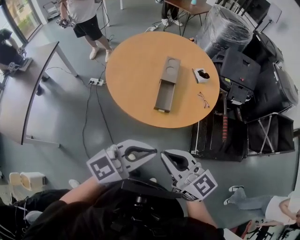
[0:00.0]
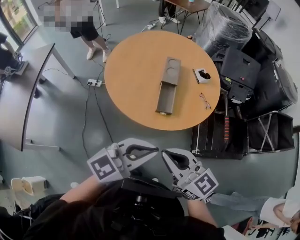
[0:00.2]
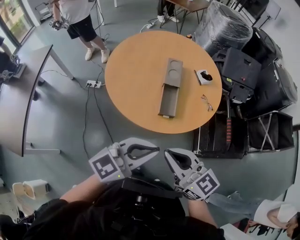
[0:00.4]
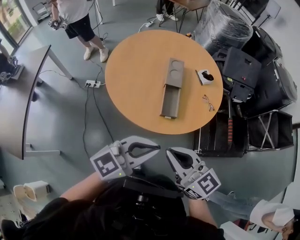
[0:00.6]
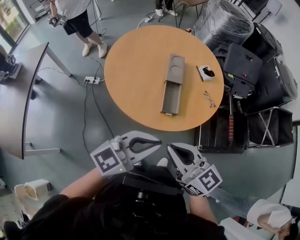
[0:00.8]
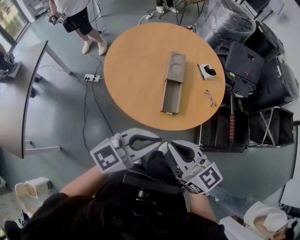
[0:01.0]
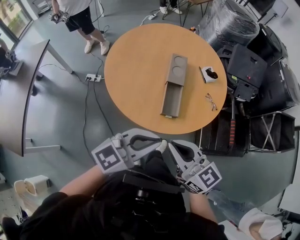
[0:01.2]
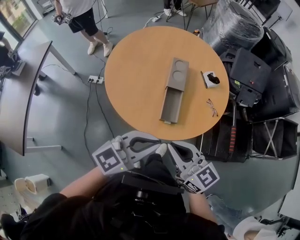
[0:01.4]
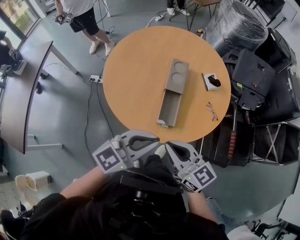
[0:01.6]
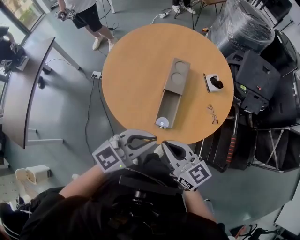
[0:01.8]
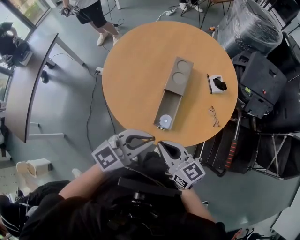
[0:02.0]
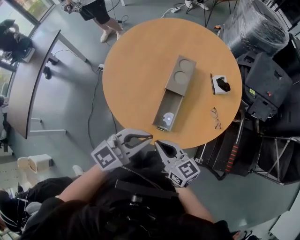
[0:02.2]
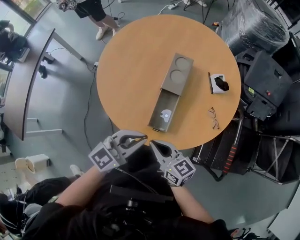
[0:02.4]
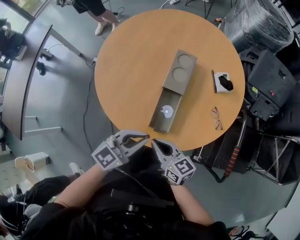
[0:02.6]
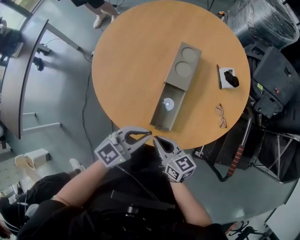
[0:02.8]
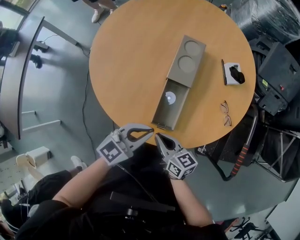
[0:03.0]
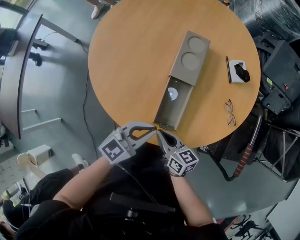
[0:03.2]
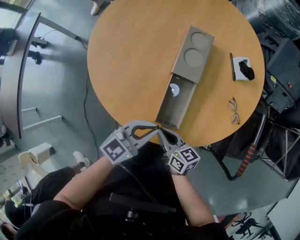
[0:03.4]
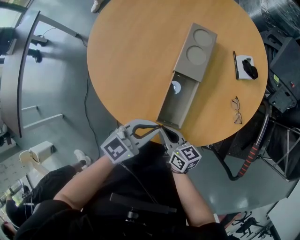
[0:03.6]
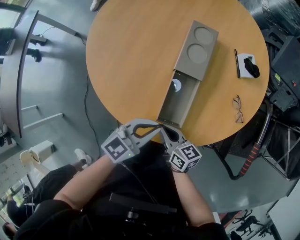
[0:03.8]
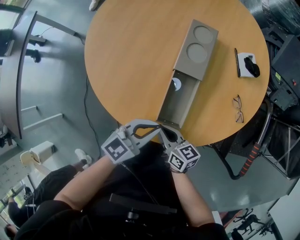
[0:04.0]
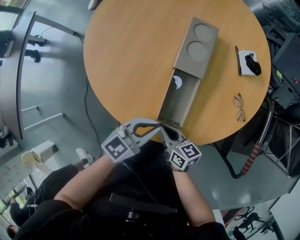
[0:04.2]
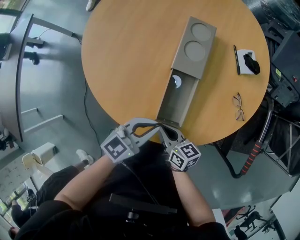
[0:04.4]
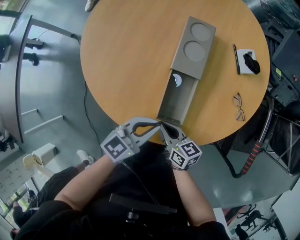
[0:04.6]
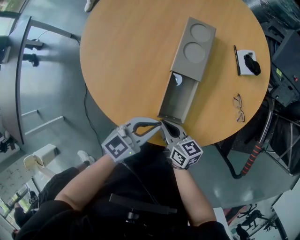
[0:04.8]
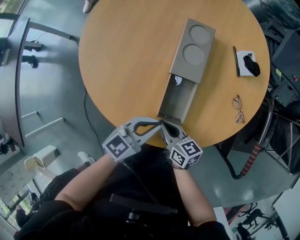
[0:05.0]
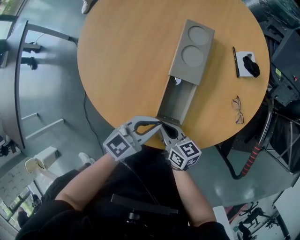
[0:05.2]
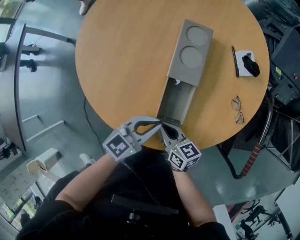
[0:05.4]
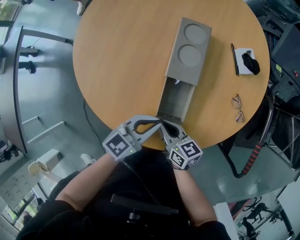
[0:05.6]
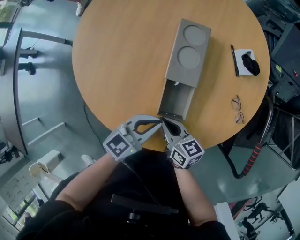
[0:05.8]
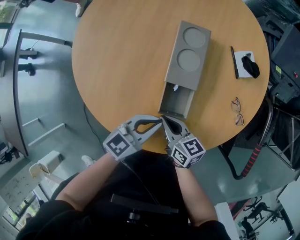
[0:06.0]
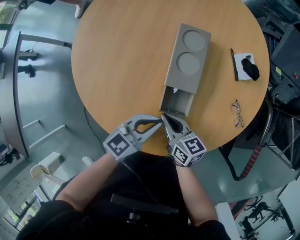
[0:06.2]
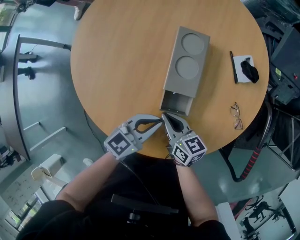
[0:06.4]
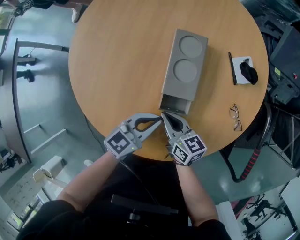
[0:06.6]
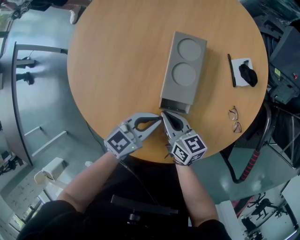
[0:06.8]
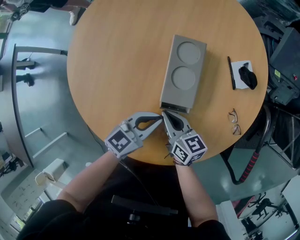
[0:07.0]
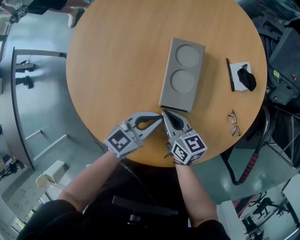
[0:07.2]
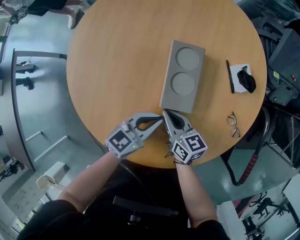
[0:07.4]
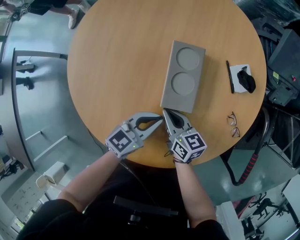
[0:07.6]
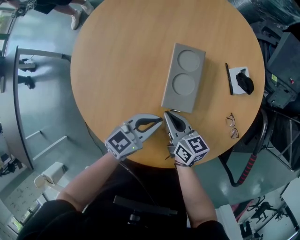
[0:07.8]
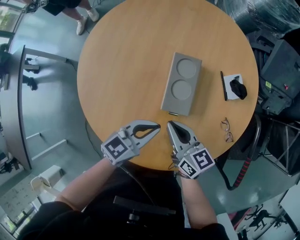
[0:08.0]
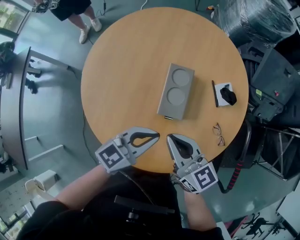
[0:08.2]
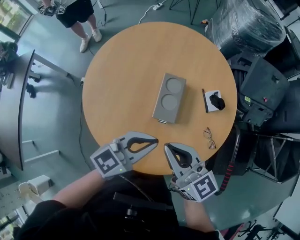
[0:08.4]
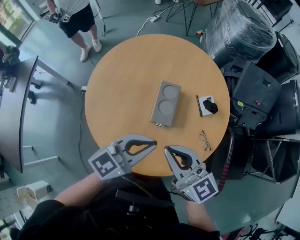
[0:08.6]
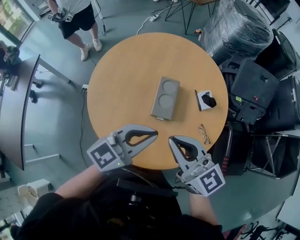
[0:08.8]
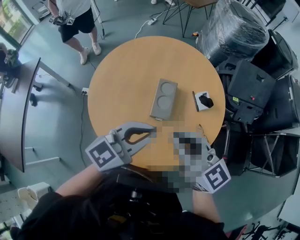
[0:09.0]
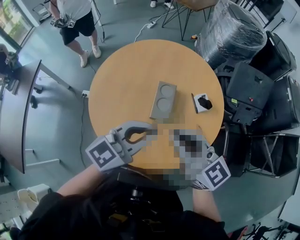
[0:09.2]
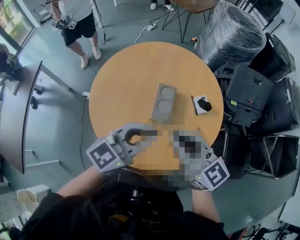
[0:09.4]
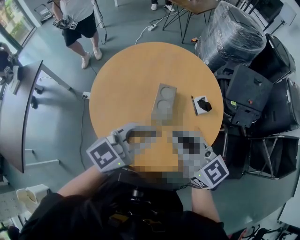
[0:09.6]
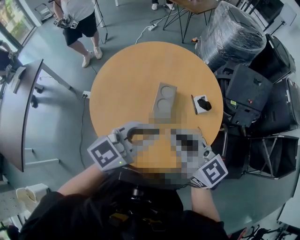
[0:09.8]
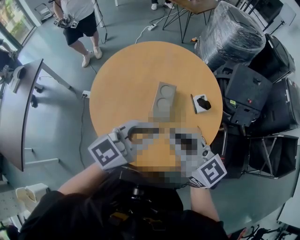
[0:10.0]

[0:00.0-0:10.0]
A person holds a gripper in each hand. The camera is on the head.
0:00.0 to 0:01.4: The two grippers go roughly 20 cm forward.
0:01.4 to 0:02.8: Both grippers move downward and forward, approximately 30 cm. The right gripper rotates about 30 degrees.
0:02.8 to 0:04.2: Both grippers travel together downward, some 10 cm.
0:04.2 to 0:05.8: The two grippers go some 10 cm forward.
0:05.8 to 0:07.2: Both grippers travel together forward, about 15 cm.
0:07.2 to 0:08.6: The two grippers go roughly 35 cm upward. The right gripper changes its angle by about 40 degrees.
0:08.6 to 0:10.0: The grippers both shift upward by some 10 cm.

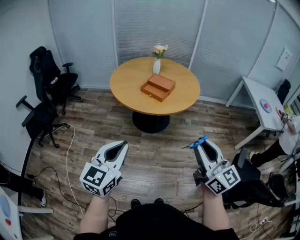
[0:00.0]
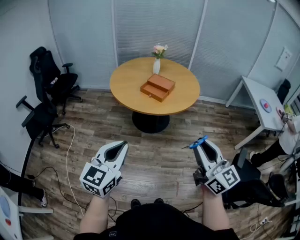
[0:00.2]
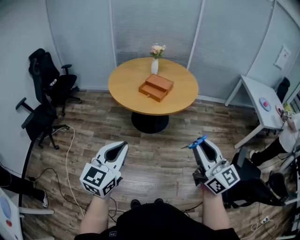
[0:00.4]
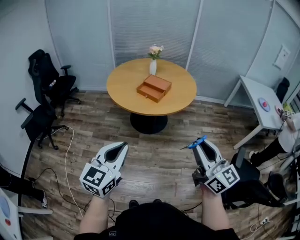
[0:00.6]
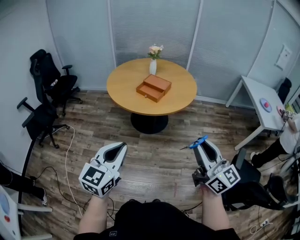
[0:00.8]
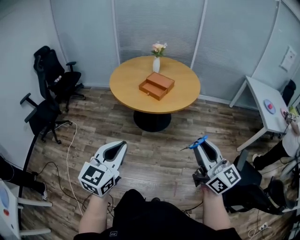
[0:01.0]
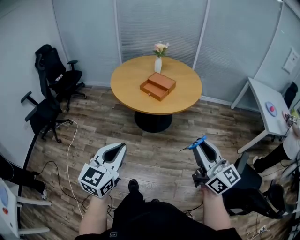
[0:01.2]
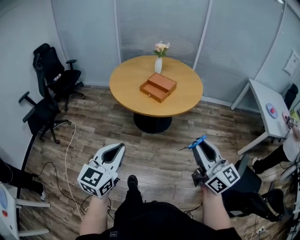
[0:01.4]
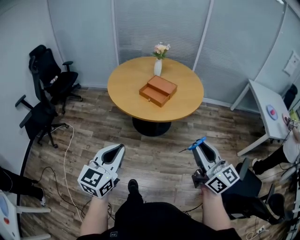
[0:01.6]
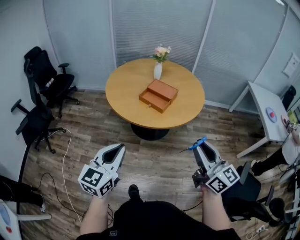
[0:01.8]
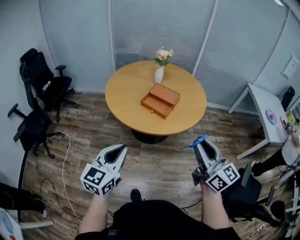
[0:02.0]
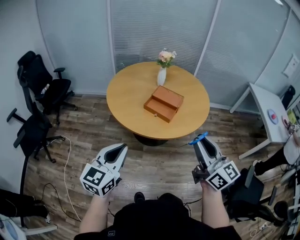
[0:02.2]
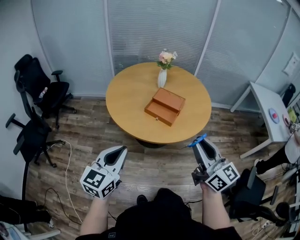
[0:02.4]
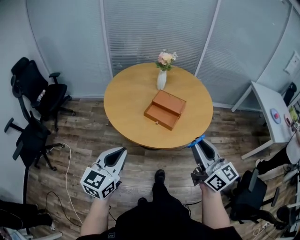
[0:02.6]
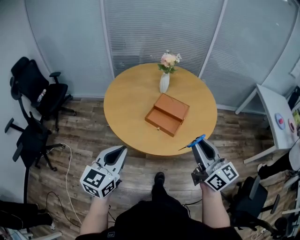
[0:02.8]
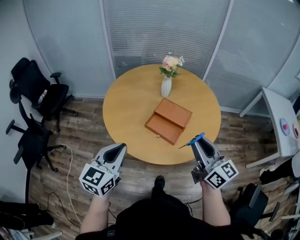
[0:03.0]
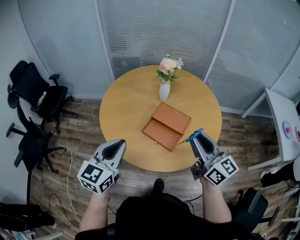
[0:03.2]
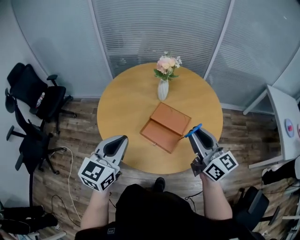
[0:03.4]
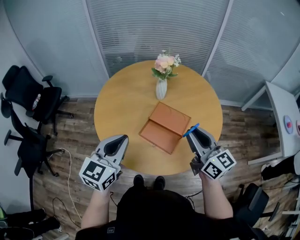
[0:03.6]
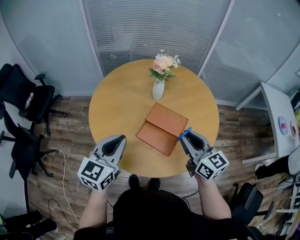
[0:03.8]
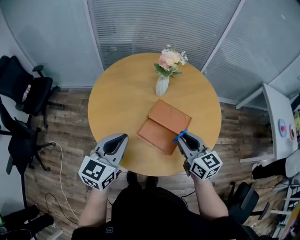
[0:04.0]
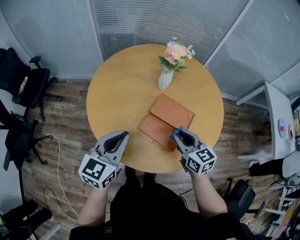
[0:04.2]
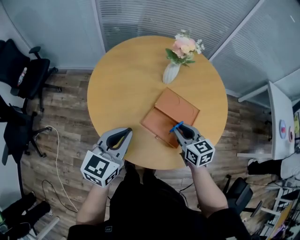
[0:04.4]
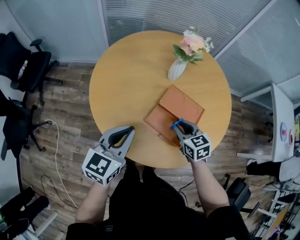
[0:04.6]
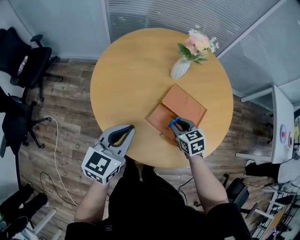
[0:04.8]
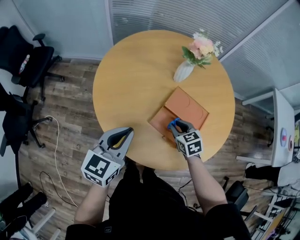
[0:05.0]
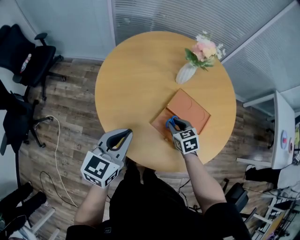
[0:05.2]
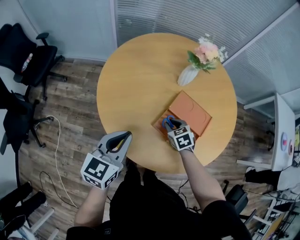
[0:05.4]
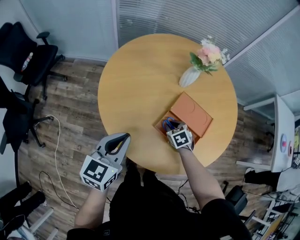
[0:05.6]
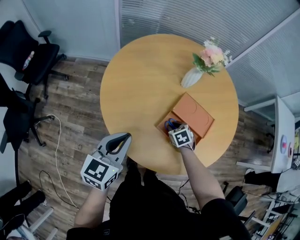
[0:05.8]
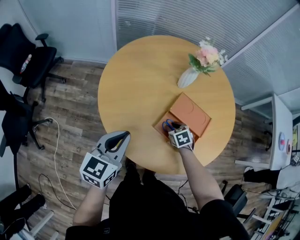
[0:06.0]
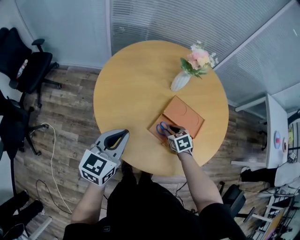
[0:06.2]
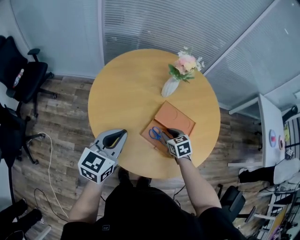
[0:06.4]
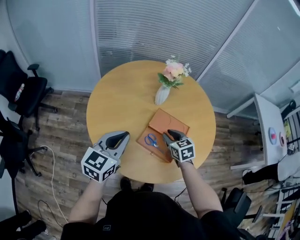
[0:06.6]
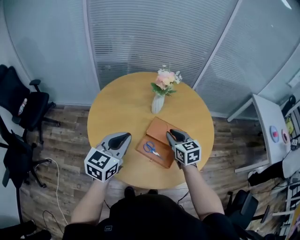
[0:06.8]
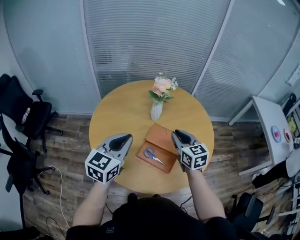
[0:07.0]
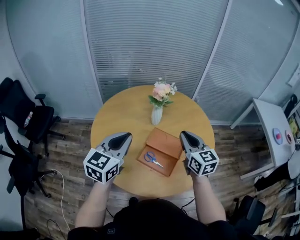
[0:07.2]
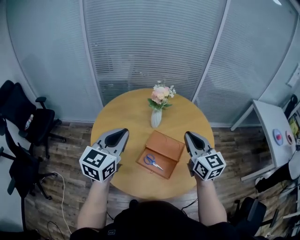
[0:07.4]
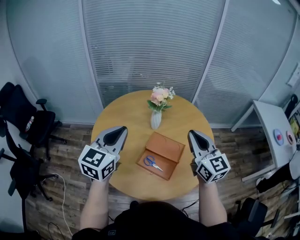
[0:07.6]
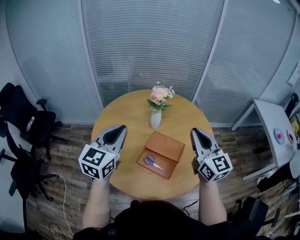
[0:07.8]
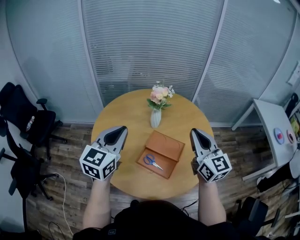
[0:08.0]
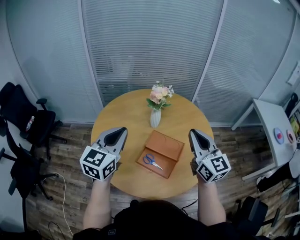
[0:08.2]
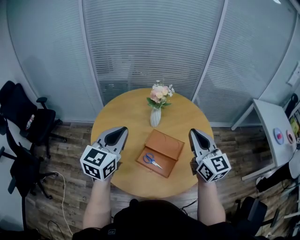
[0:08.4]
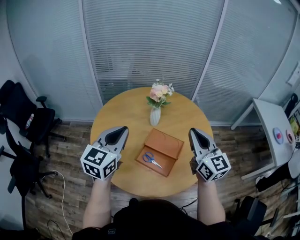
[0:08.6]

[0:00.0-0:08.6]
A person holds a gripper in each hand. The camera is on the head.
0:00.0 to 0:01.4: The left gripper shifts by approximately 5 cm. The right gripper shifts approximately 5 cm to the right.
0:01.4 to 0:02.8: The grippers both shift forward by about 35 cm.
0:02.8 to 0:04.4: The right gripper moves forward and downward, roughly 35 cm, and angles its fingers downward, by roughly 40 degrees, while the left gripper moves forward, some 25 cm.
0:04.4 to 0:05.8: The right gripper moves downward, roughly 20 cm, and tilts its fingers roughly 40 degrees downward, while the left gripper shifts roughly 10 cm to the left.
0:05.8 to 0:07.2: The right gripper goes roughly 35 cm upward, and tilts its fingers roughly 50 degrees upward. The left gripper shifts about 20 cm upward and to the right.
0:07.2 to 0:08.6: The right gripper goes some 10 cm upward.

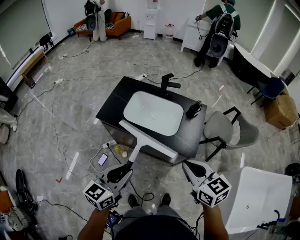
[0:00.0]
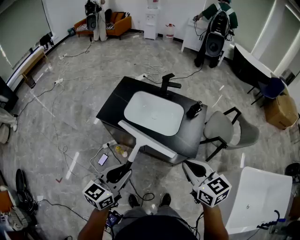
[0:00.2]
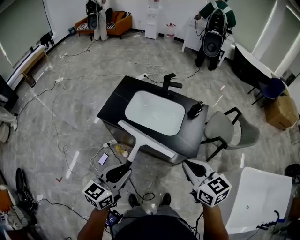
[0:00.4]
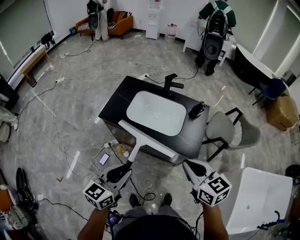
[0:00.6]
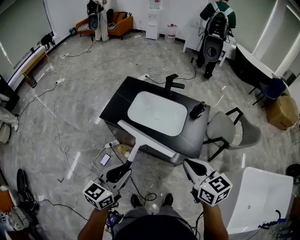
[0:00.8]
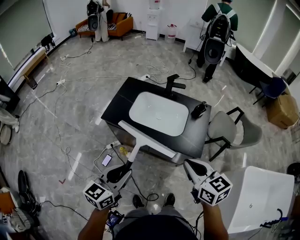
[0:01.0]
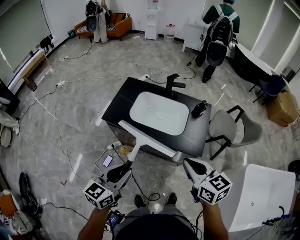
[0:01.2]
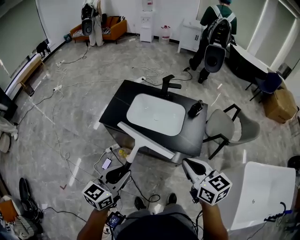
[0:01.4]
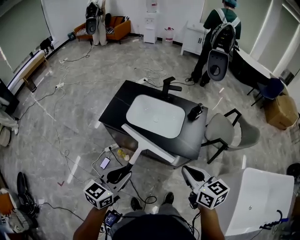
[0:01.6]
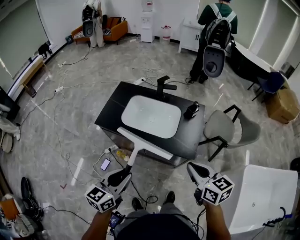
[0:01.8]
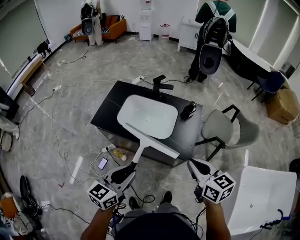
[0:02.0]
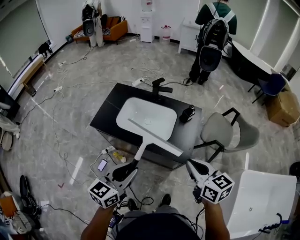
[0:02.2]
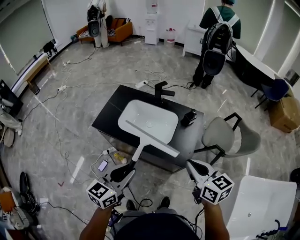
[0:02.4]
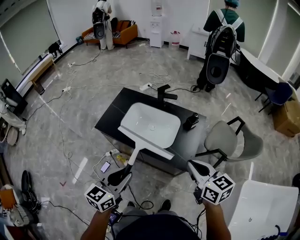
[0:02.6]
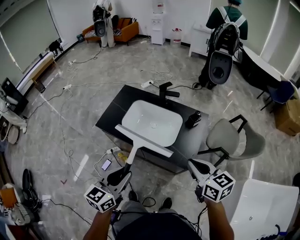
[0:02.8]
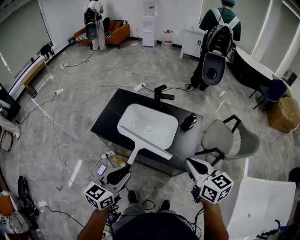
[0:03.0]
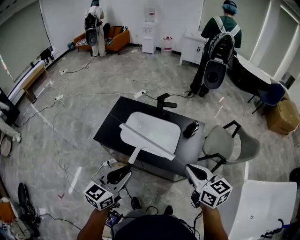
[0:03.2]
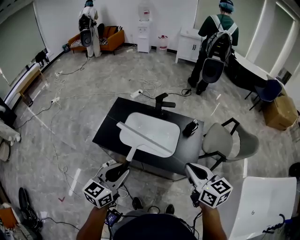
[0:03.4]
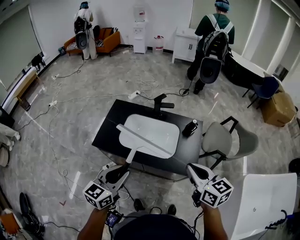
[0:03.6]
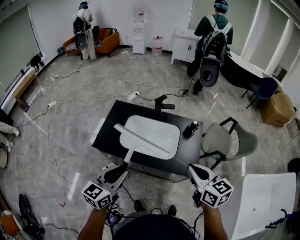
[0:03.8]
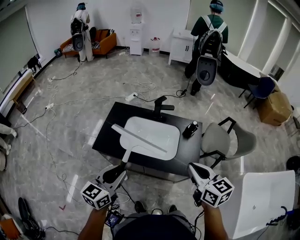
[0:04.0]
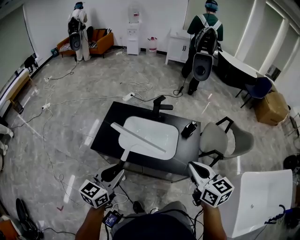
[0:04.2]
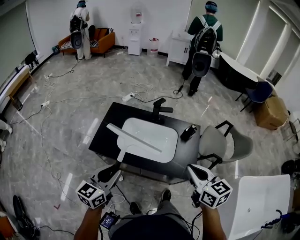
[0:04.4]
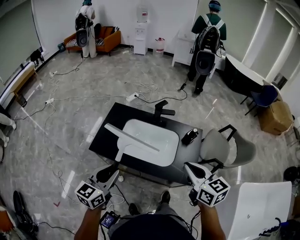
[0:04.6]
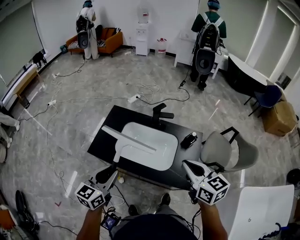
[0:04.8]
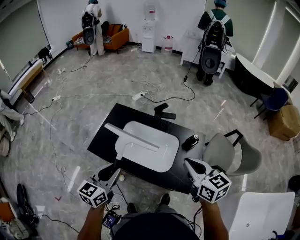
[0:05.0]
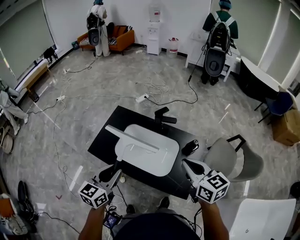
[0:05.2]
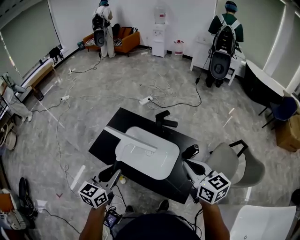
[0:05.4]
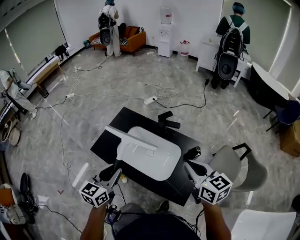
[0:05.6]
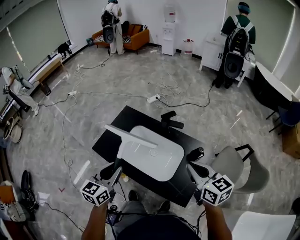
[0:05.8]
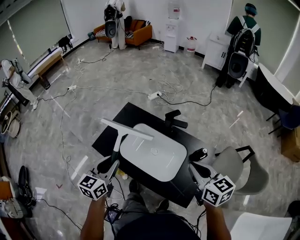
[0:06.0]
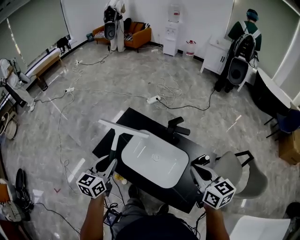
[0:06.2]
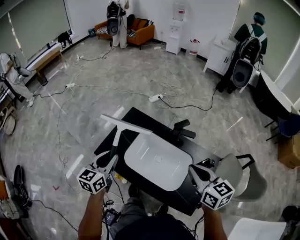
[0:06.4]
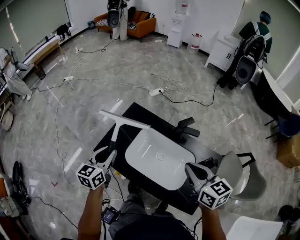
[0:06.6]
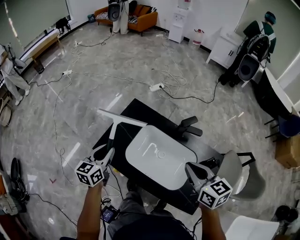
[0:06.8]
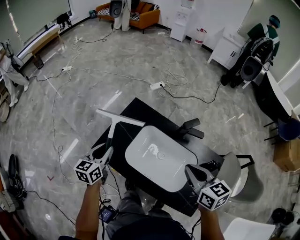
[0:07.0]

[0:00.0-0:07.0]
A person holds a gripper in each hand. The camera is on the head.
0:00.0 to 0:01.4: The grippers move only a little.
0:01.4 to 0:02.8: The grippers both shift to the right and forward by about 15 cm.
0:02.8 to 0:04.2: The left gripper goes approximately 15 cm to the left and forward; the right gripper shifts roughly 10 cm to the left.
0:04.2 to 0:05.6: The grippers both shift forward and to the right by about 20 cm. The left gripper changes its angle by about 20 degrees.
0:05.6 to 0:07.0: Both grippers travel together forward, to the left and downward, about 25 cm.
